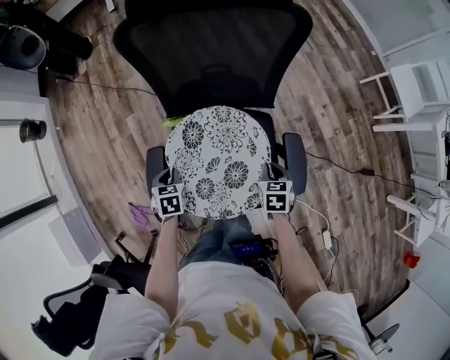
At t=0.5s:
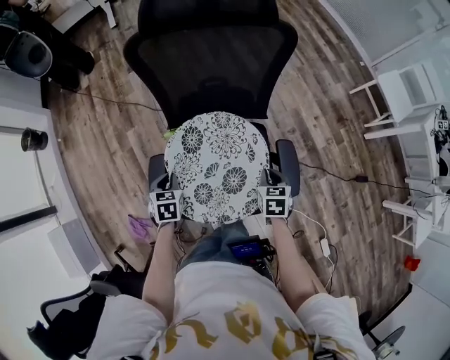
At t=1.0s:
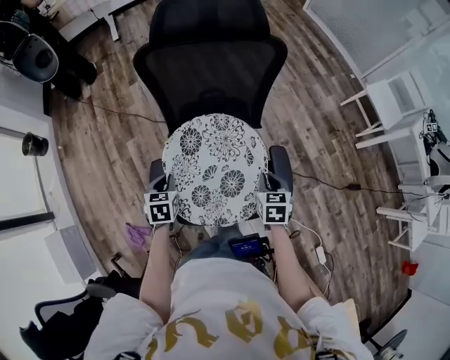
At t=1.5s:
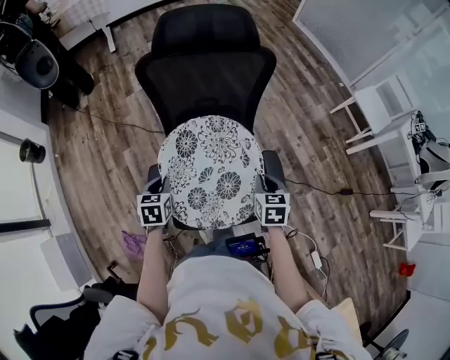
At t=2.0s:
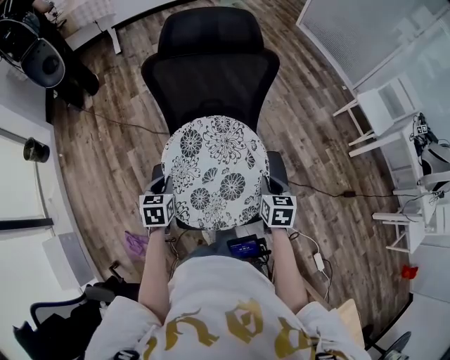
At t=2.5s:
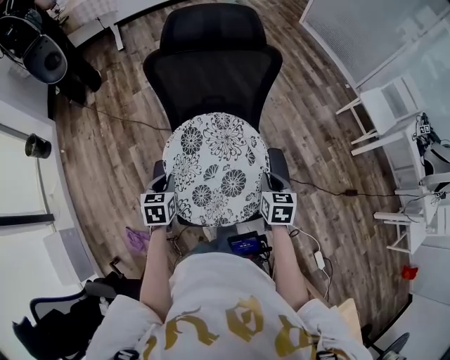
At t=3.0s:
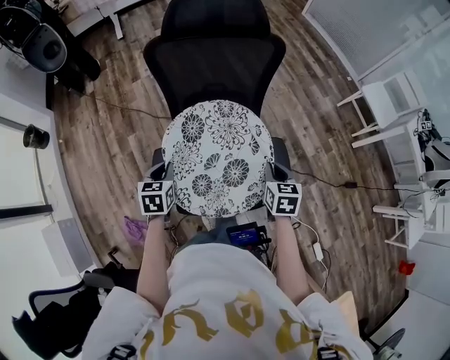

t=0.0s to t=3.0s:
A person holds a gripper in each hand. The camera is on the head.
t=0.0s to t=1.5s: The grippers both shift upward by roughly 15 cm.
t=1.5s to t=3.0s: The grippers make only small movements.

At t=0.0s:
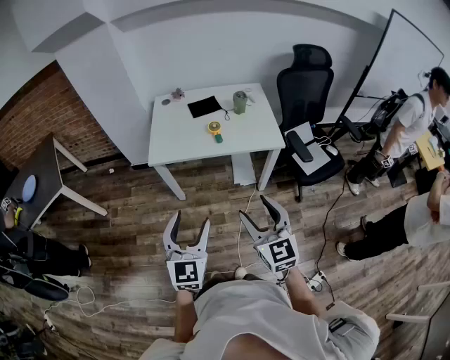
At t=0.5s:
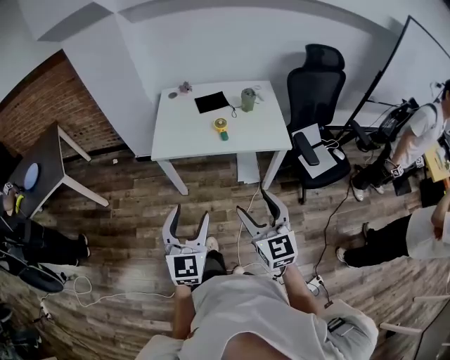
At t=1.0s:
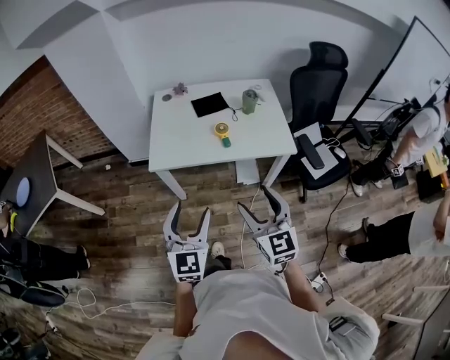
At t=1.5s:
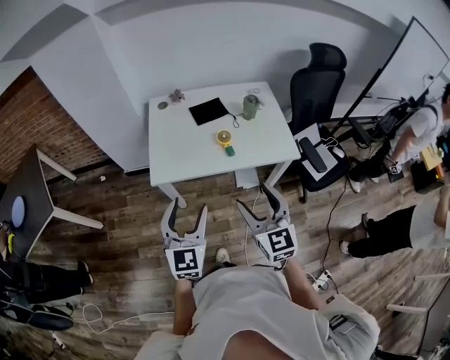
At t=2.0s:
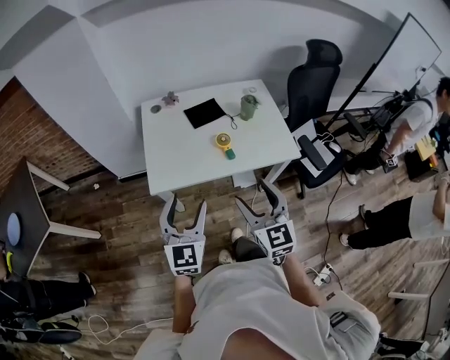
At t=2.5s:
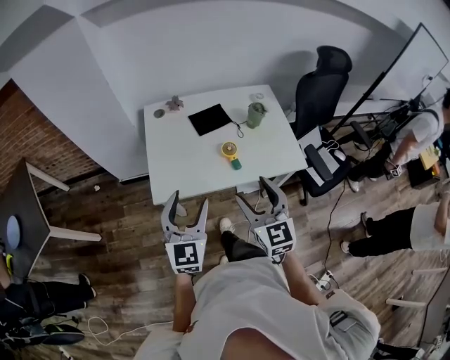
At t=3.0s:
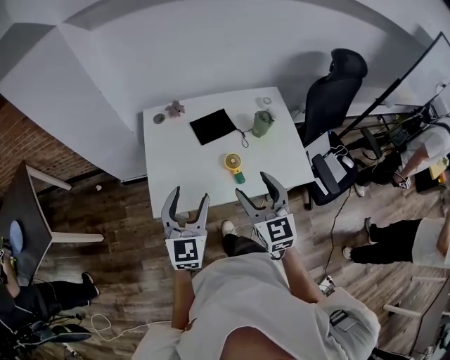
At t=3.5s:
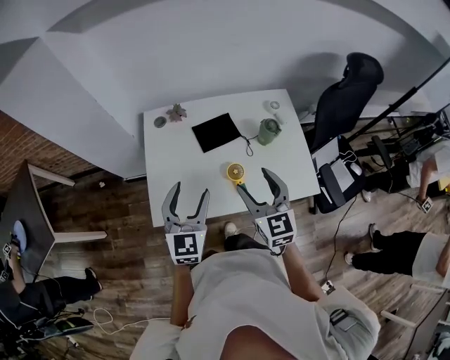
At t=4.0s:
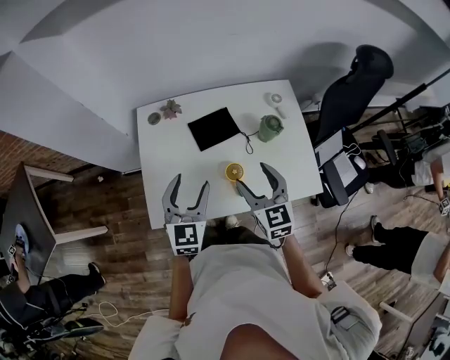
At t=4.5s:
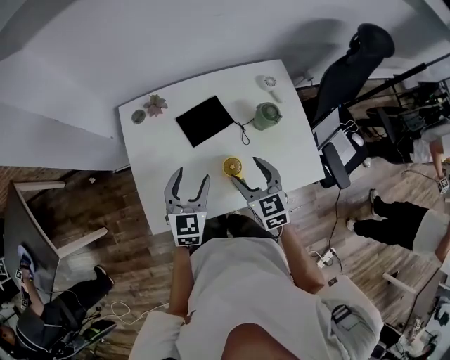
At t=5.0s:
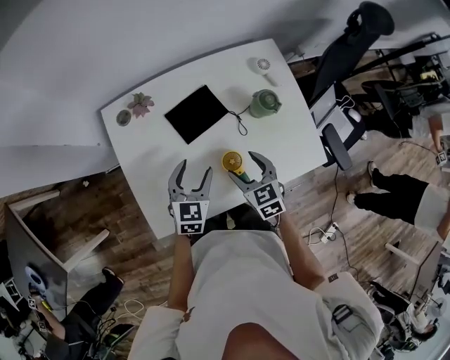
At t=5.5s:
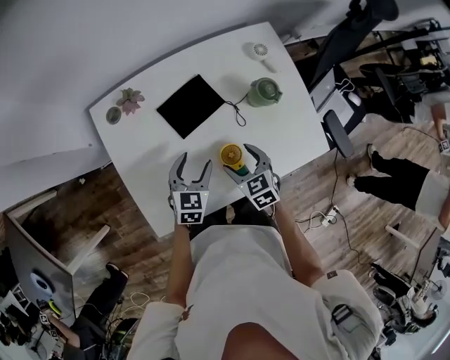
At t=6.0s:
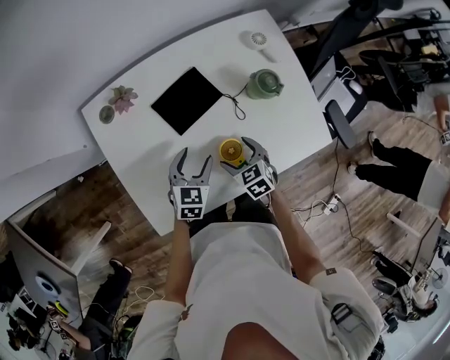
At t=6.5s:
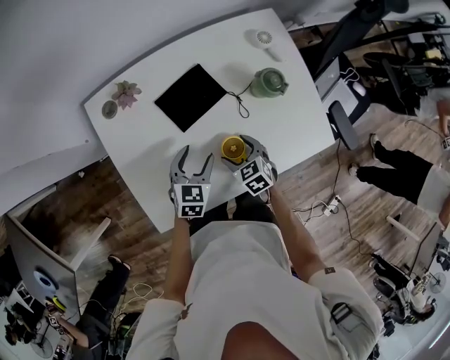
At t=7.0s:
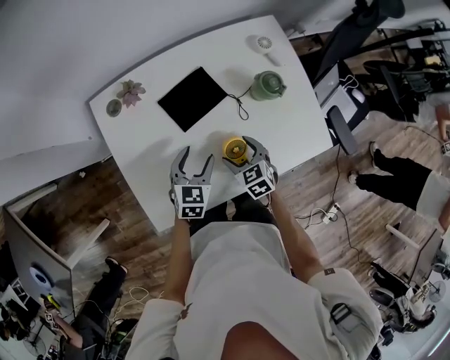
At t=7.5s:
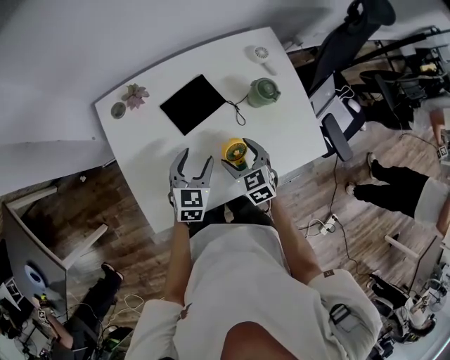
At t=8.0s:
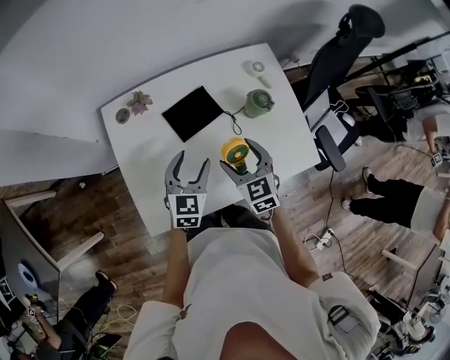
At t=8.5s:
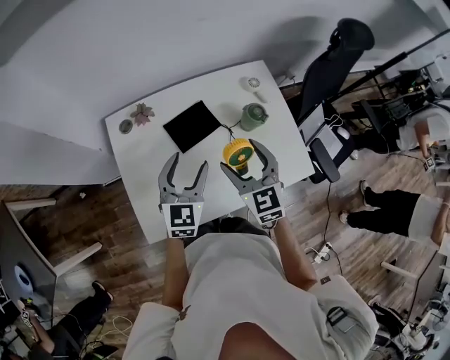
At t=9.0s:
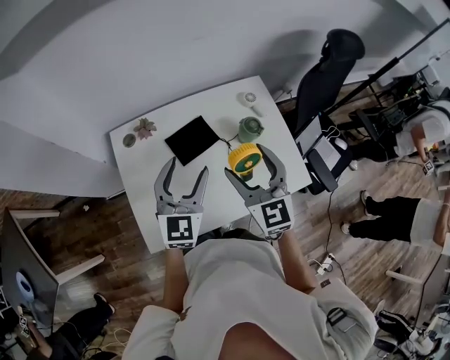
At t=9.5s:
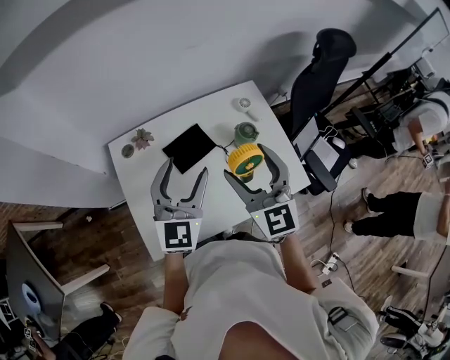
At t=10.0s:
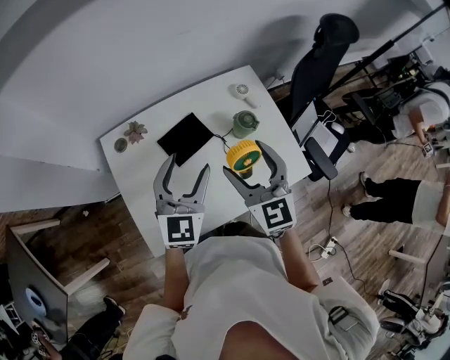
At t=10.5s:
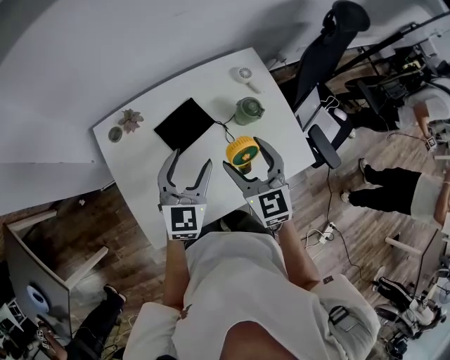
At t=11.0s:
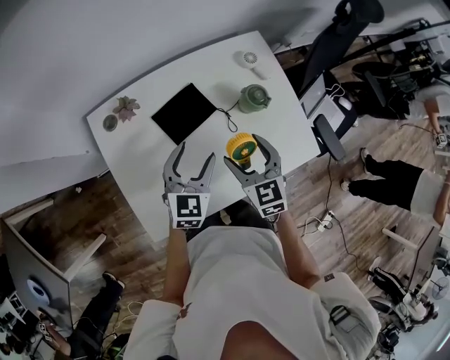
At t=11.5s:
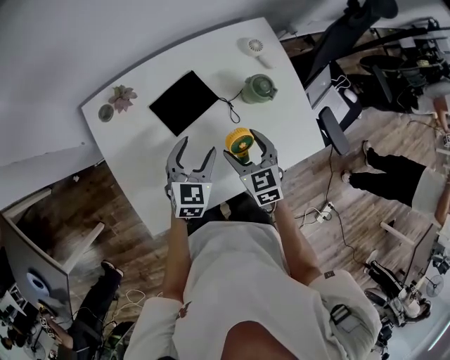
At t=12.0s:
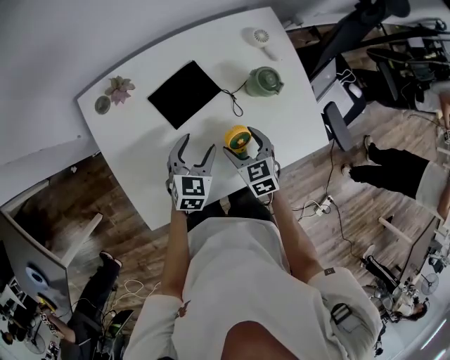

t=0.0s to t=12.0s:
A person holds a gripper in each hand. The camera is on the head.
t=0.0s to t=2.0s: The grippers both shift forward by approximately 25 cm.
t=2.0s to t=4.0s: The grippers both shift forward by some 30 cm.
t=4.0s to t=6.0s: The left gripper shifts some 25 cm downward and forward, and changes its angle by about 30 degrees, while the right gripper heads downward, covering roughly 25 cm, and points its fingers about 30 degrees further downward.
t=6.0s to t=8.0s: The two grippers go roughly 15 cm upward. The right gripper swivels approximately 20 degrees.
t=8.0s to t=10.0s: Both grippers travel together upward, about 15 cm. The right gripper swivels about 20 degrees.
t=10.0s to t=12.0s: The two grippers go roughly 30 cm downward. The left gripper rotates some 30 degrees. The right gripper tilts its fingers about 40 degrees downward.

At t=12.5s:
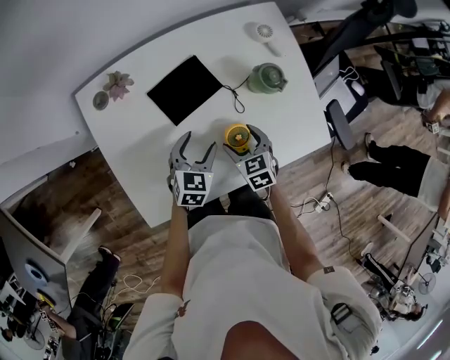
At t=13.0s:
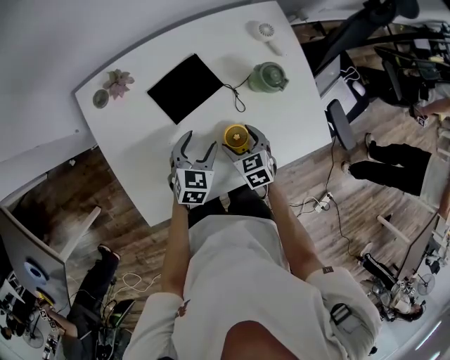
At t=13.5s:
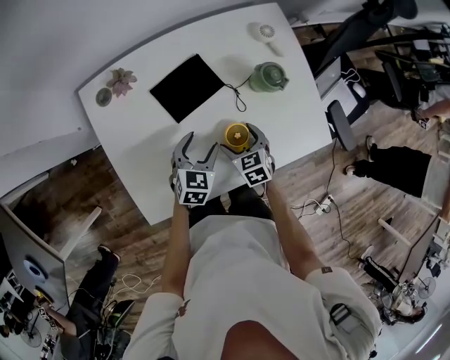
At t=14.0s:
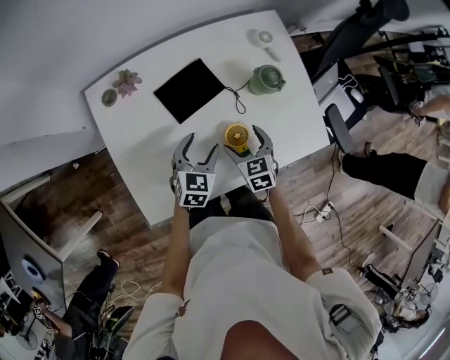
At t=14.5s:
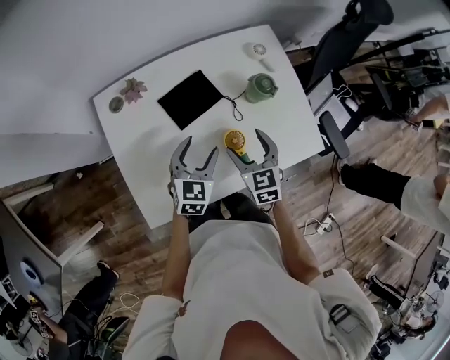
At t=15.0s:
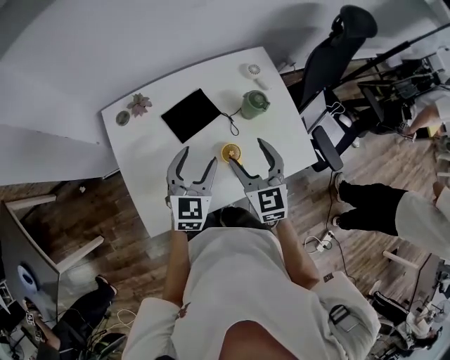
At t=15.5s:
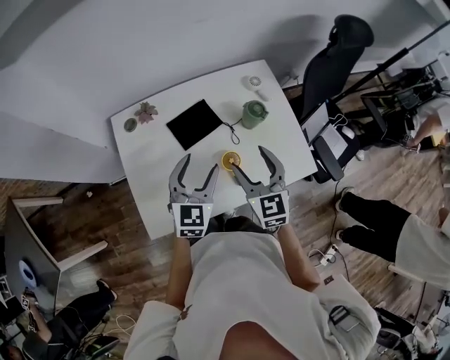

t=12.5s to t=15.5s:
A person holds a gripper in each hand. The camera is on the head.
t=12.5s to t=14.0s: There are only small adjustments of the grippers.
t=14.0s to t=15.5s: Both grippers move upward, roughly 20 cm. The left gripper changes its angle by some 20 degrees; the right gripper swivels approximately 30 degrees.

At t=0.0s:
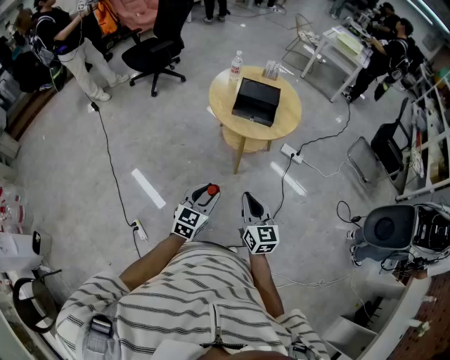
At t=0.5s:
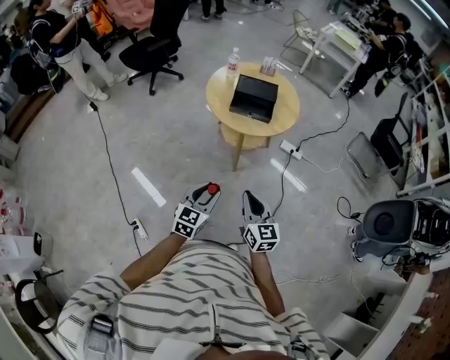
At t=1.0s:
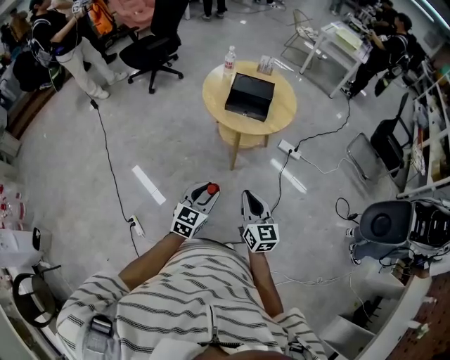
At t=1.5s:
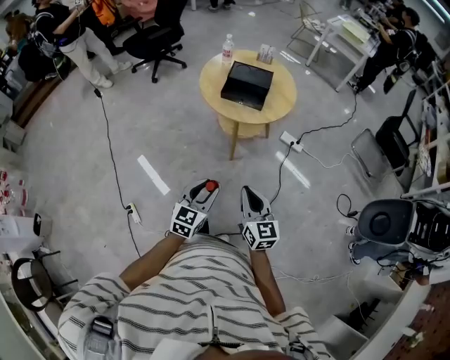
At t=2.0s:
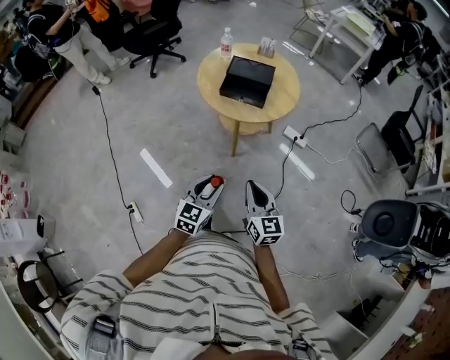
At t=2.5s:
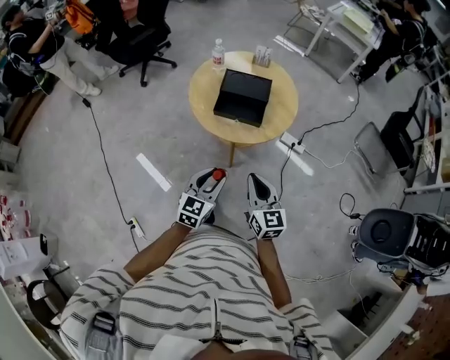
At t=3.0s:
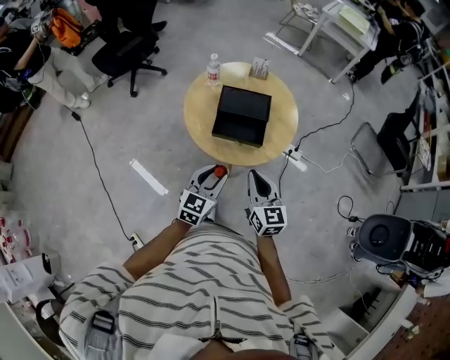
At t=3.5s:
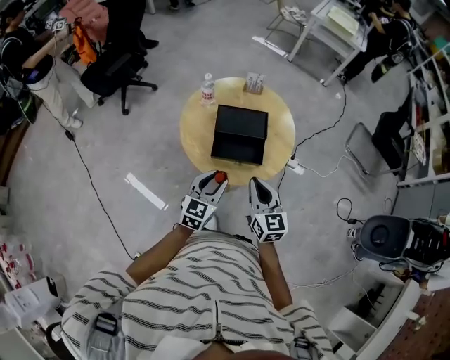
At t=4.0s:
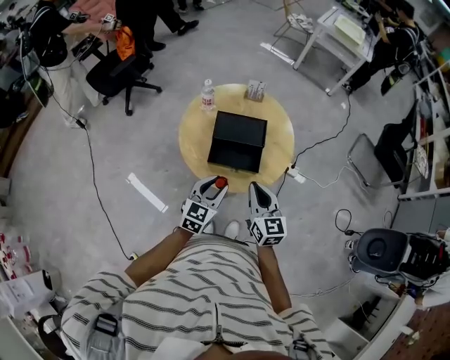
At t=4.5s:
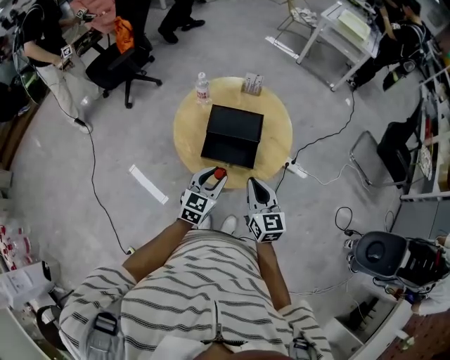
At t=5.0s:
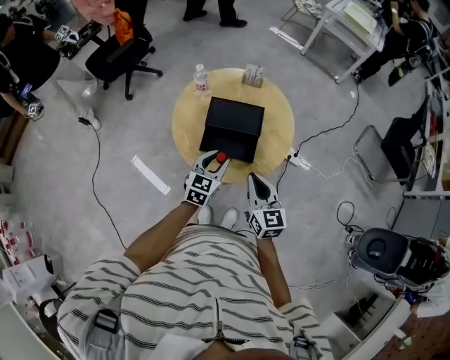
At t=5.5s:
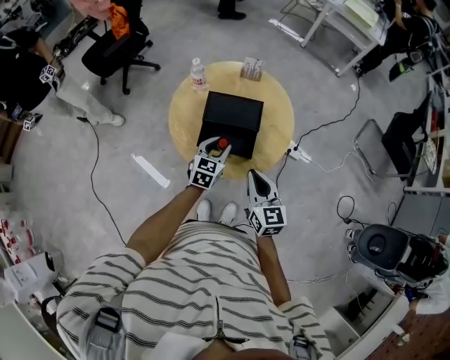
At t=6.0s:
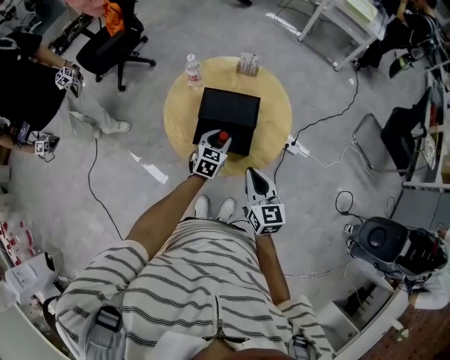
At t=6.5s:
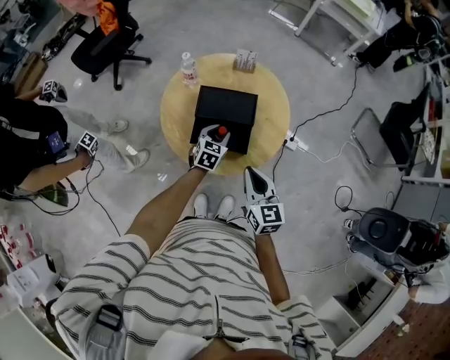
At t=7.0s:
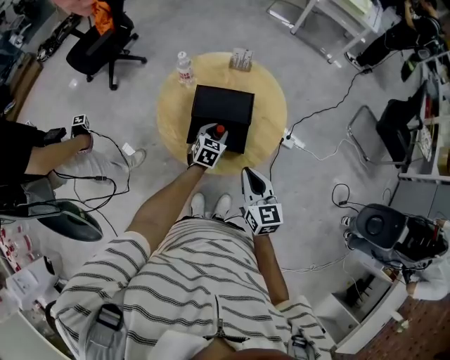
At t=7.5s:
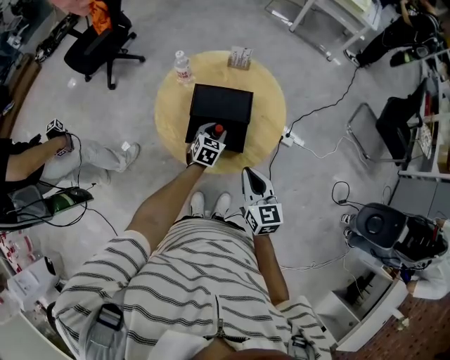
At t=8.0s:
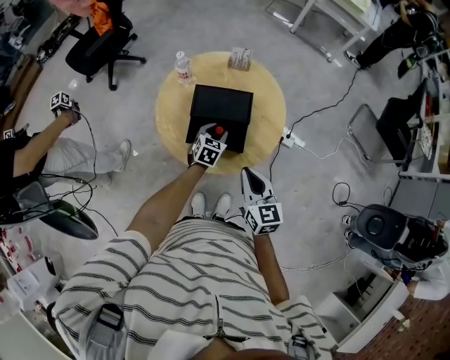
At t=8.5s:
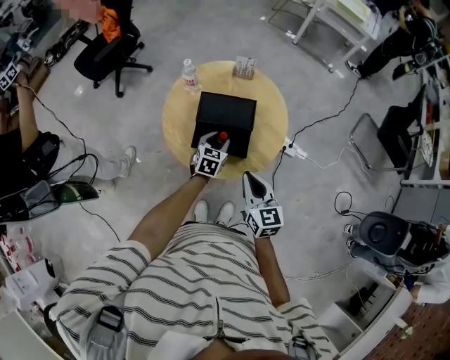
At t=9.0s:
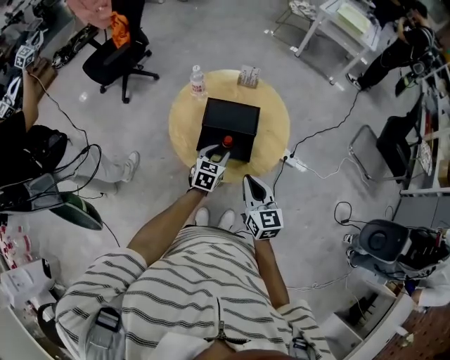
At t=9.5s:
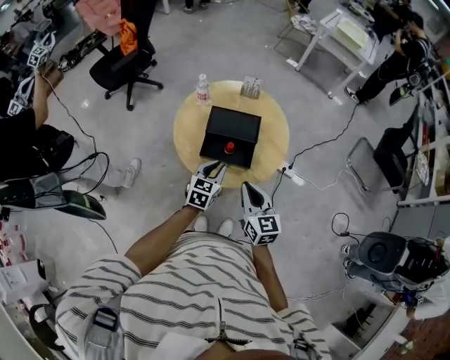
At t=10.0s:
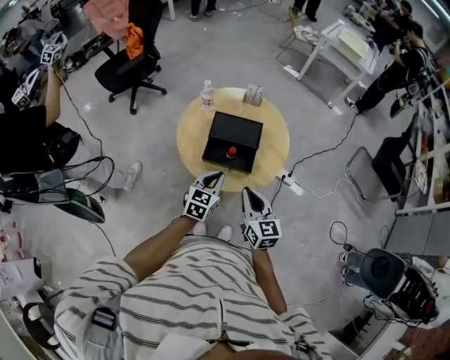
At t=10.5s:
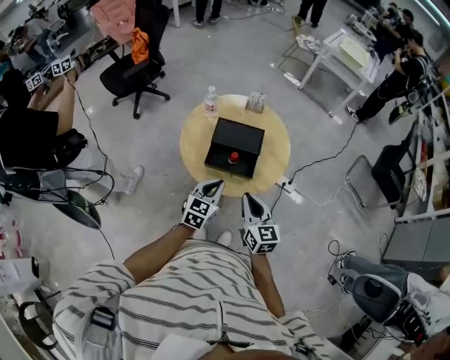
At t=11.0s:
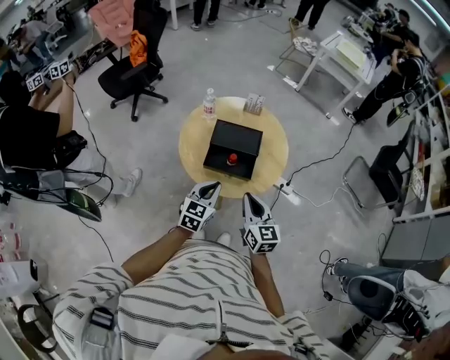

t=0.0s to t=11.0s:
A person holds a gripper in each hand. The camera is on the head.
t=0.0s to t=2.0s: The two grippers go approximately 10 cm to the right.
t=2.0s to t=3.5s: The two grippers go about 35 cm forward.
t=3.5s to t=5.5s: The right gripper is displaced to the right by roughly 5 cm. Meanwhile the left gripper goes about 15 cm forward, downward and to the right.
t=5.5s to t=7.5s: The left gripper heads downward, covering about 10 cm.
t=7.5s to t=9.0s: The left gripper goes about 10 cm upward and backward.
t=9.0s to t=11.0s: The left gripper heads backward and upward, covering some 15 cm, and closes up.
